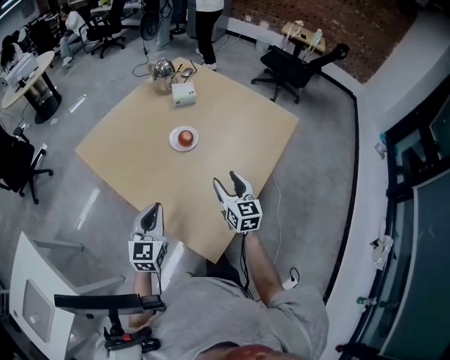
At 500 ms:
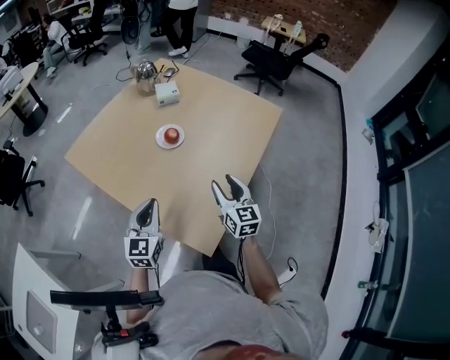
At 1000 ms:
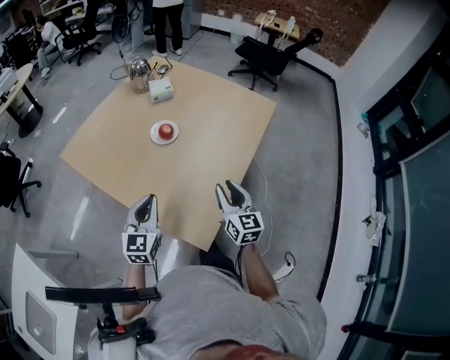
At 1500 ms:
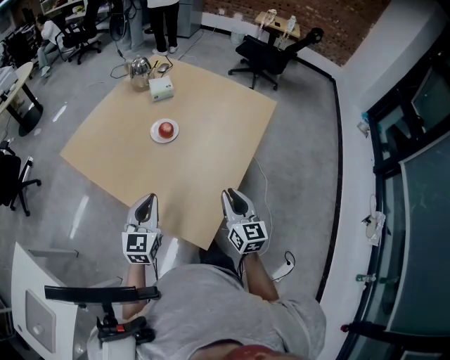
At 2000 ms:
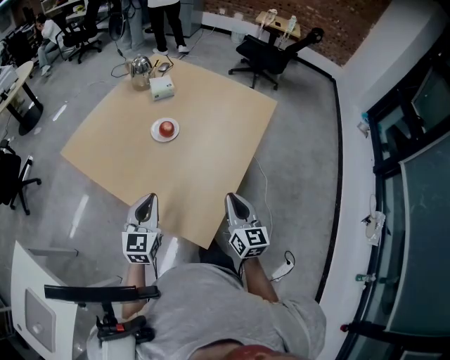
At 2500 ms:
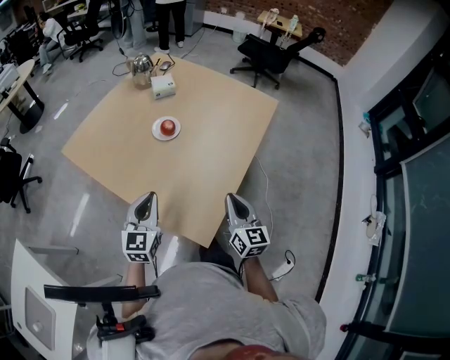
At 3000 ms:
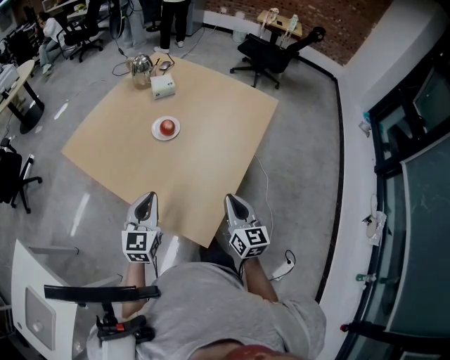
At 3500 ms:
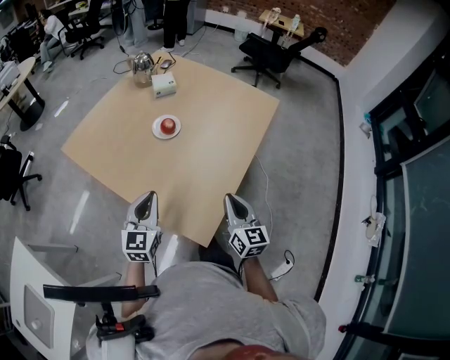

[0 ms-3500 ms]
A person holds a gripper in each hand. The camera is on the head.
0 ms to 2000 ms: The right gripper shifts some 15 cm backward and to the right, and closes its fingers.
2000 ms to 3500 ms: Both grippers stay put.

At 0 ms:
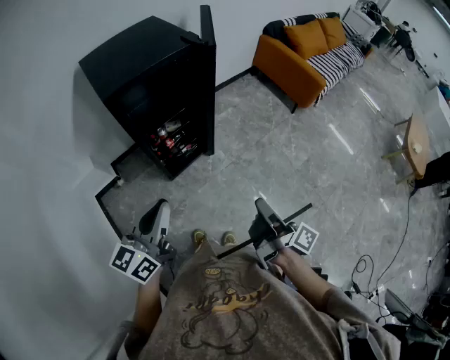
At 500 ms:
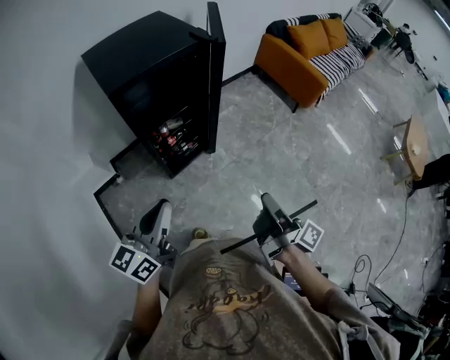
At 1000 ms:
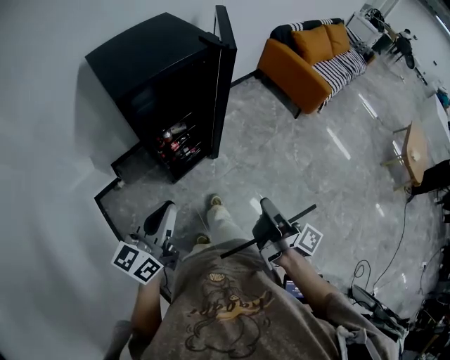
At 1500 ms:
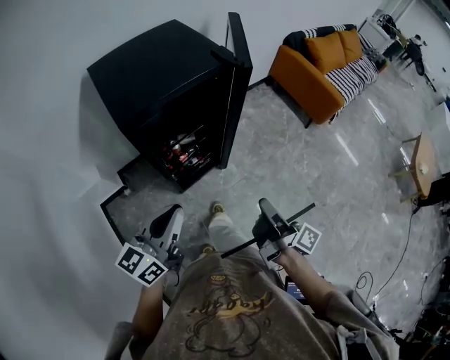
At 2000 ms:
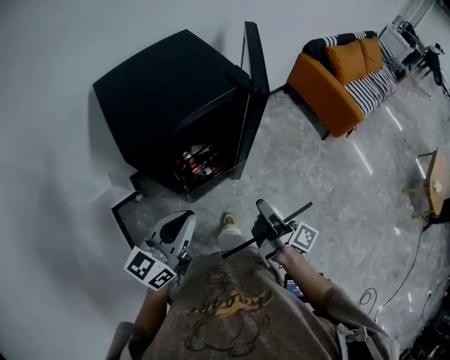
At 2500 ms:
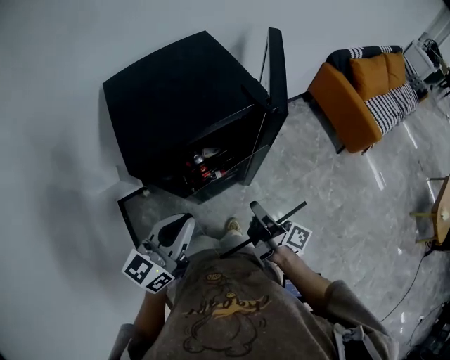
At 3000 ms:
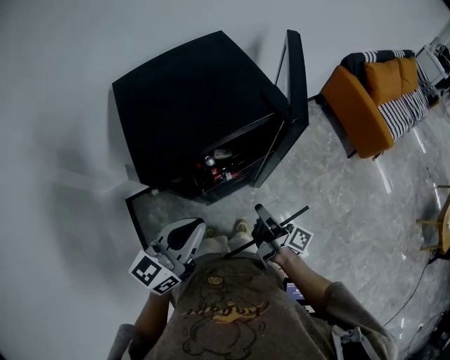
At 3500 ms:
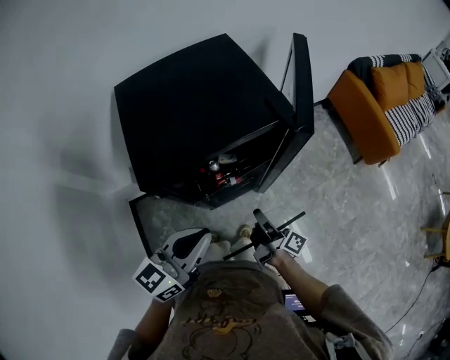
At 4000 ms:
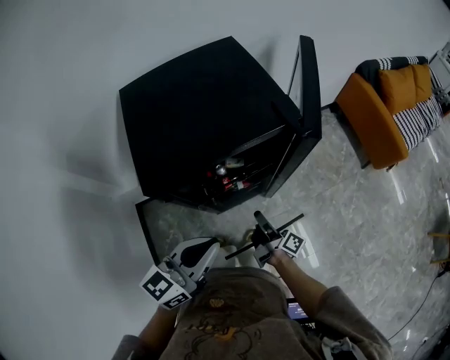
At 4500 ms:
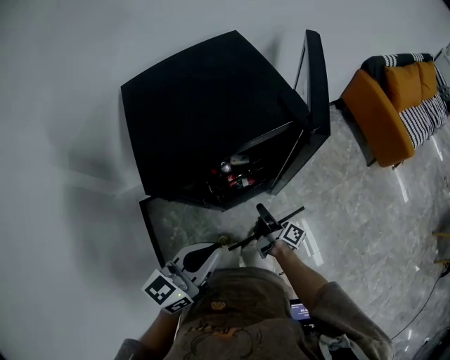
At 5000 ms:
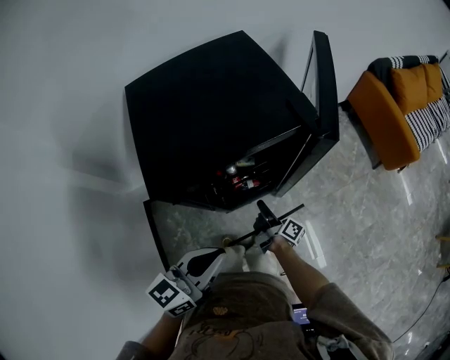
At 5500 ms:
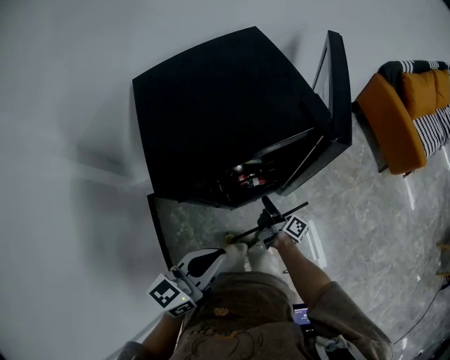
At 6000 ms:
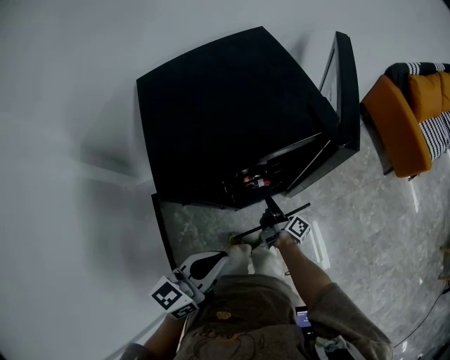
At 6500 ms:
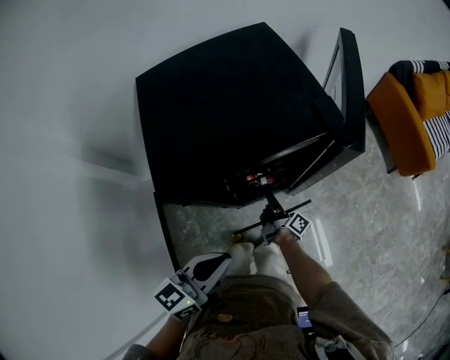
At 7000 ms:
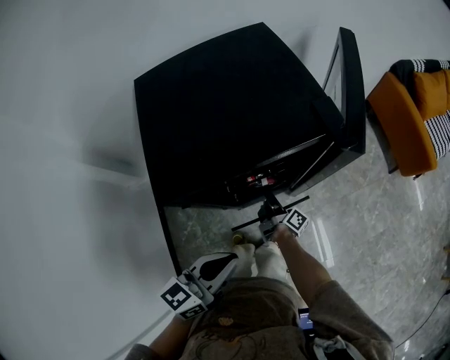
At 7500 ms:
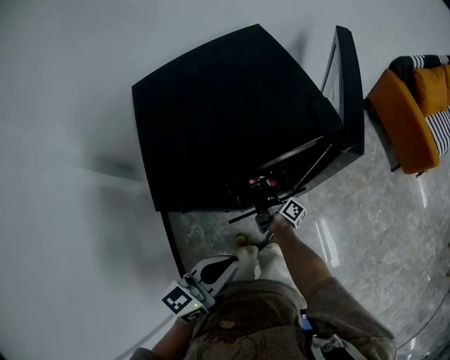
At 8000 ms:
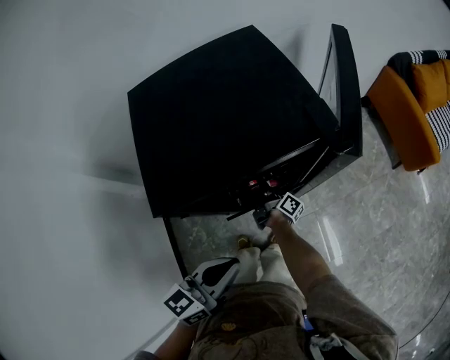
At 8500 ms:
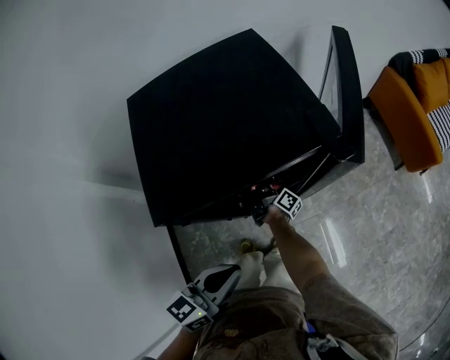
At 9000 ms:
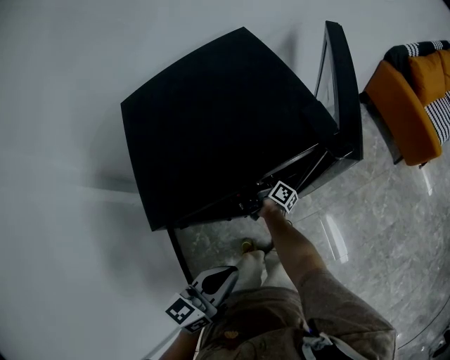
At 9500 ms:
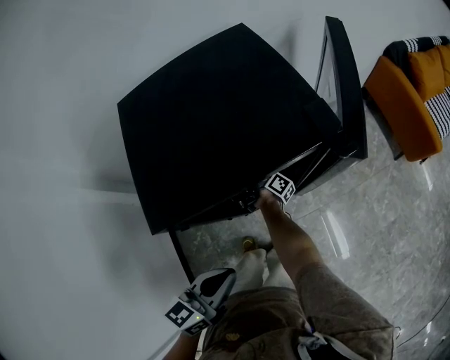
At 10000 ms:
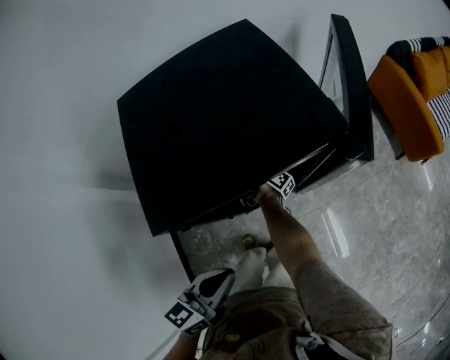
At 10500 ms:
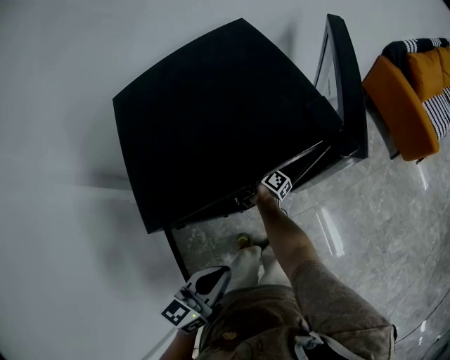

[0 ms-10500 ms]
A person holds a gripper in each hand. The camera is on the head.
0 ms to 2000 ms: The left gripper changes place by roughly 20 cm.
2000 ms to 4000 ms: The left gripper changes place by approximately 5 cm.
4000 ms to 6500 ms: The left gripper changes place by approximately 5 cm.

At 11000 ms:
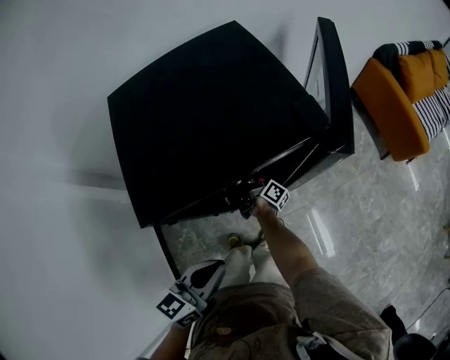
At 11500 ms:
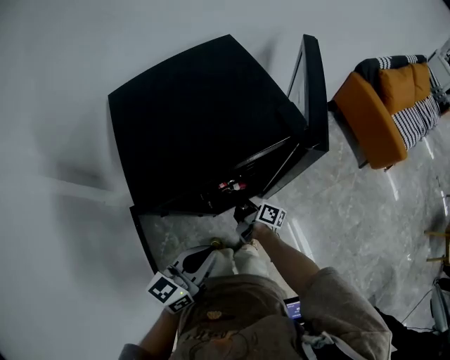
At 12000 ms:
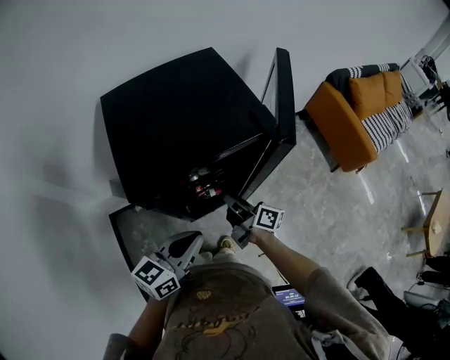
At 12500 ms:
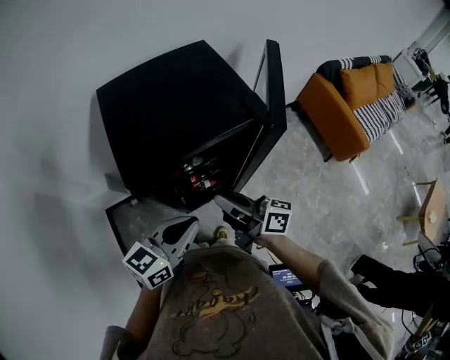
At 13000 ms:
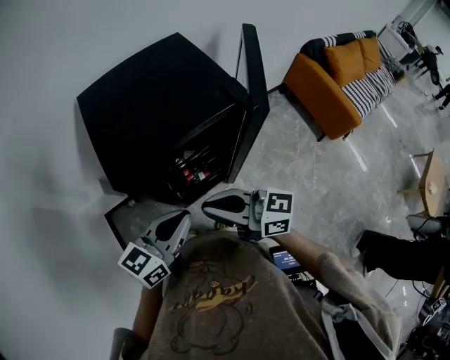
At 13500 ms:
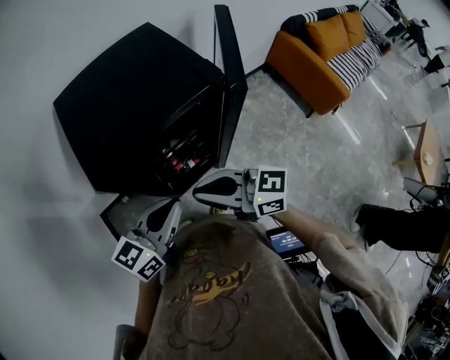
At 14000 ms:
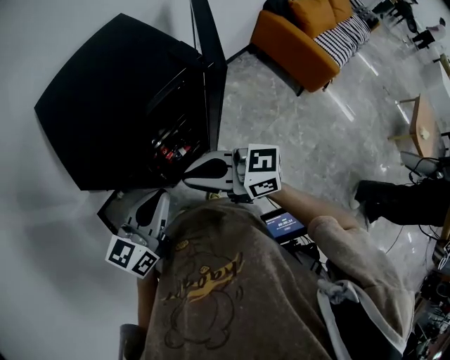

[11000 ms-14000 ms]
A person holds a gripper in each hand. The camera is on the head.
11000 ms to 12500 ms: The left gripper heads upward, covering about 5 cm.

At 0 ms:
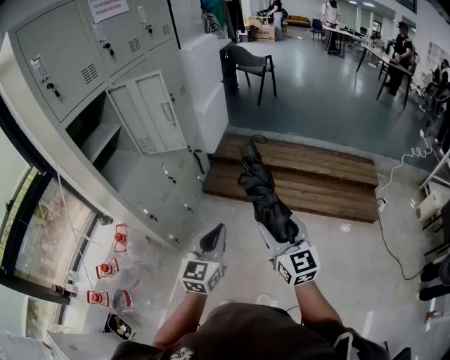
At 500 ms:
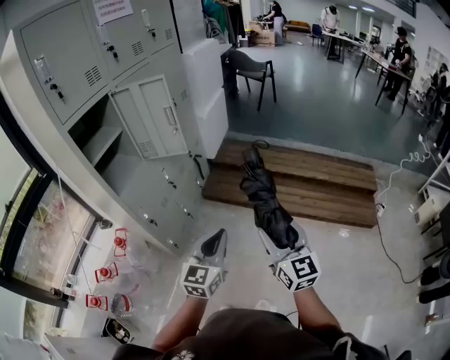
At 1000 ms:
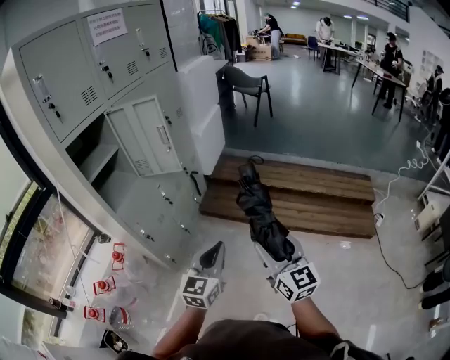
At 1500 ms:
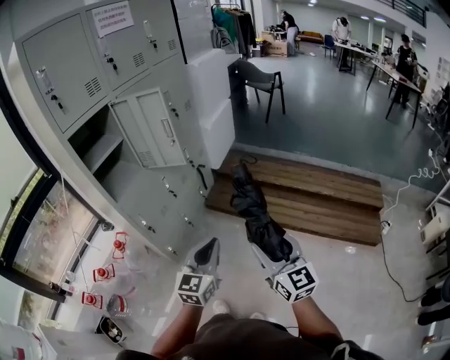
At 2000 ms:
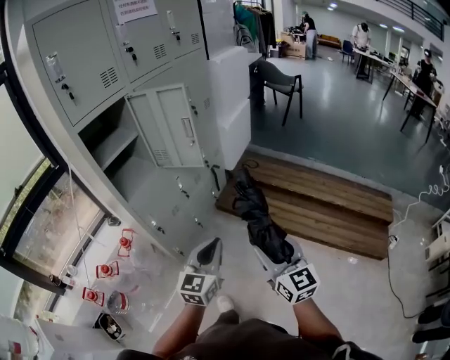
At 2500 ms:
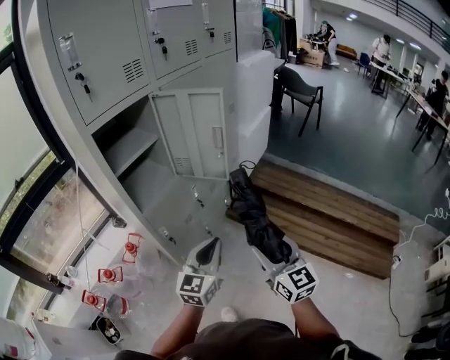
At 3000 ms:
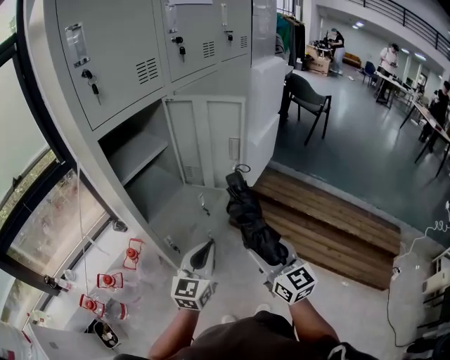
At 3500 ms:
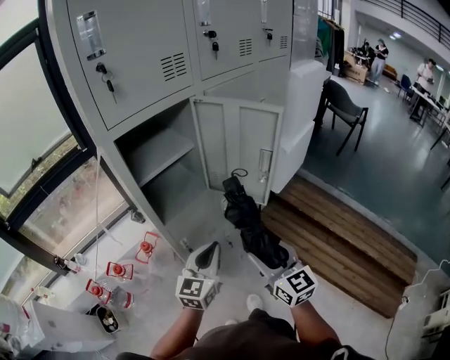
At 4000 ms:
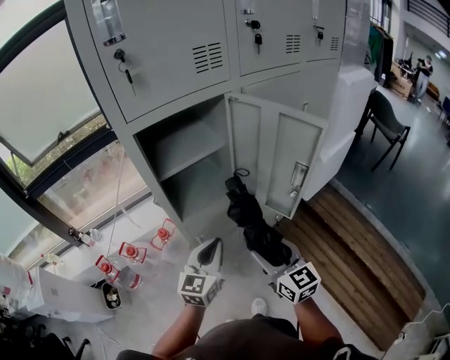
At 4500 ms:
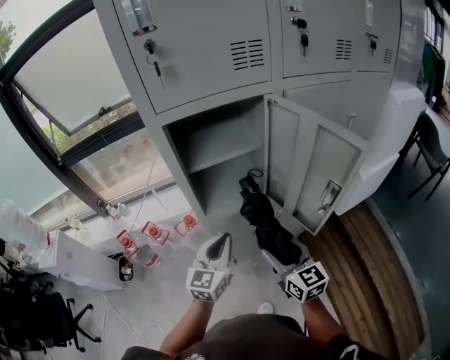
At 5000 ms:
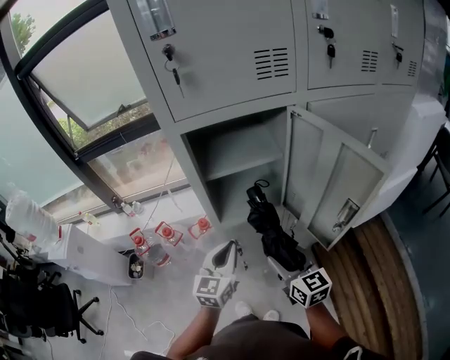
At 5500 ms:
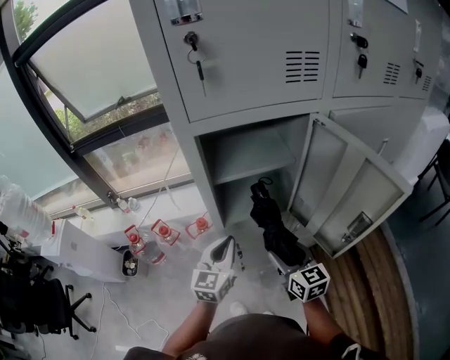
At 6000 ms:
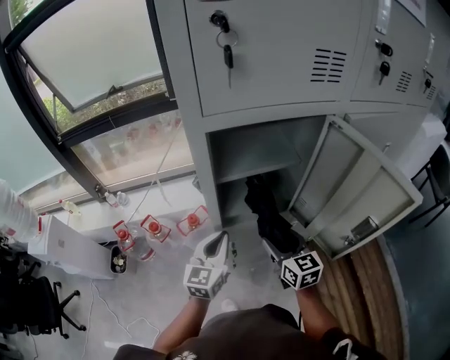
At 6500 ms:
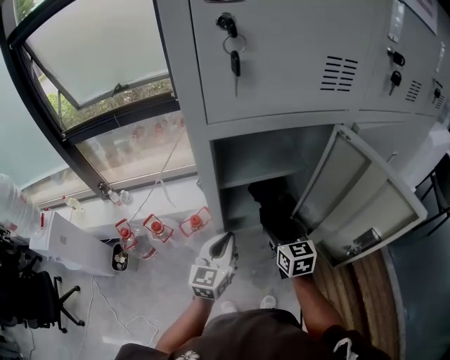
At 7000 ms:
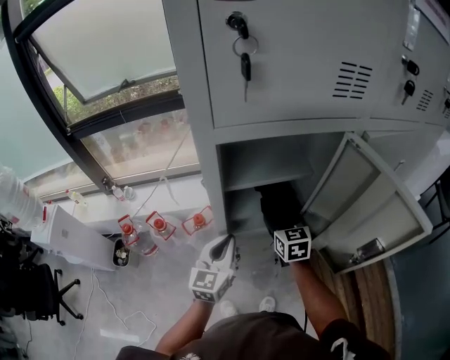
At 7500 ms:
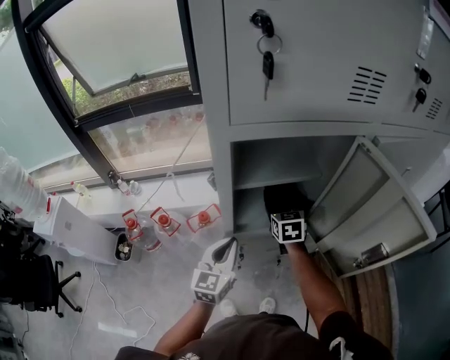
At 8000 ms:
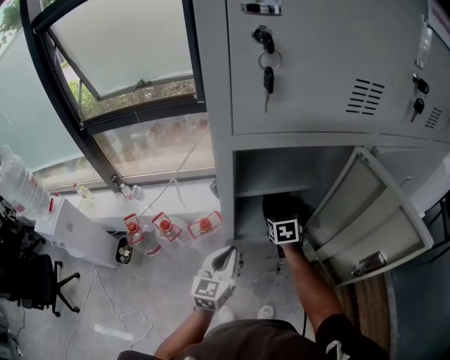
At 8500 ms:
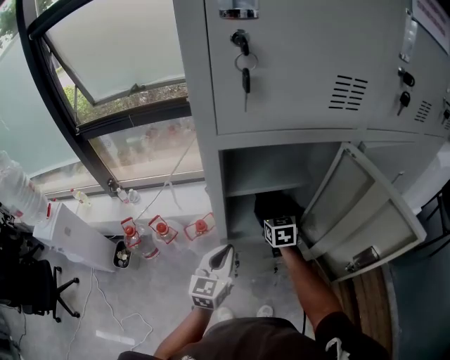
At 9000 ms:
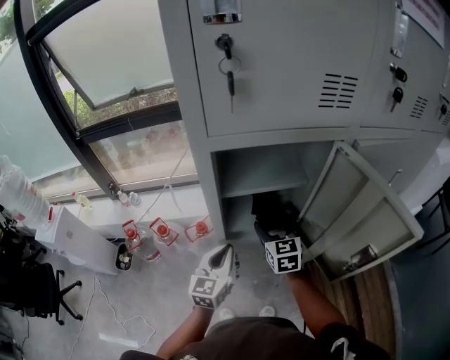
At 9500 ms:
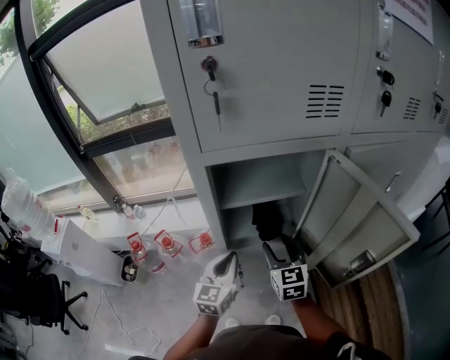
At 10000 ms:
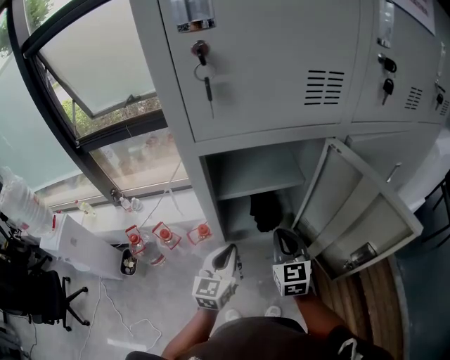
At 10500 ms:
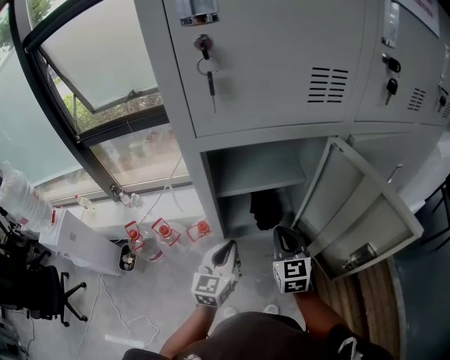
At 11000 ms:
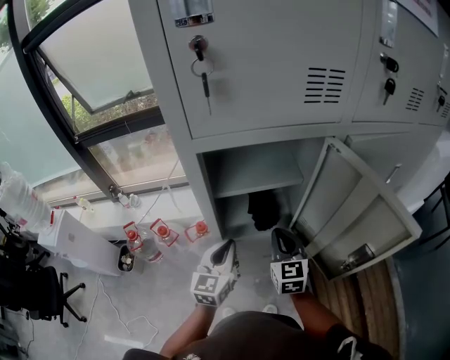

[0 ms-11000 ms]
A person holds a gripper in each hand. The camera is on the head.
0 ms to 2000 ms: The grippers both shift forward by some 5 cm.
2000 ms to 3500 ms: The two grippers go approximately 30 cm forward and to the left. The right gripper changes its angle by approximately 20 degrees.
3500 ms to 5500 ms: The left gripper changes place by approximately 15 cm, and rotates some 30 degrees; the right gripper moves approximately 20 cm, and rotates some 30 degrees.
5500 ms to 7500 ms: The right gripper travels forward by some 20 cm, and changes its angle by roughly 20 degrees.
7500 ms to 9000 ms: The right gripper heads backward, covering about 5 cm.
9000 ms to 11000 ms: The right gripper travels backward by approximately 5 cm, and closes its fingers.
